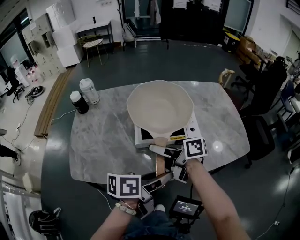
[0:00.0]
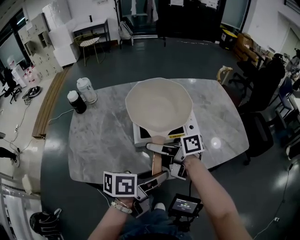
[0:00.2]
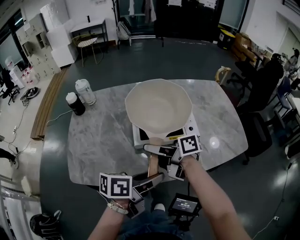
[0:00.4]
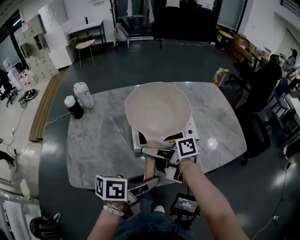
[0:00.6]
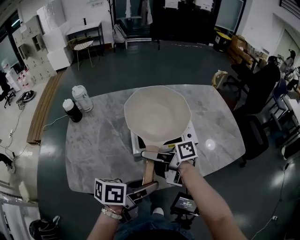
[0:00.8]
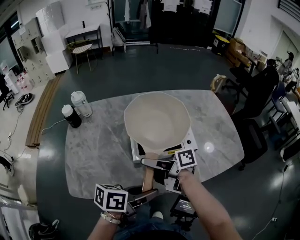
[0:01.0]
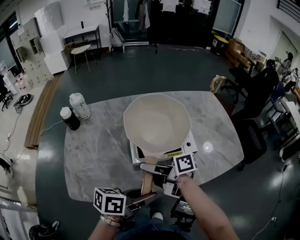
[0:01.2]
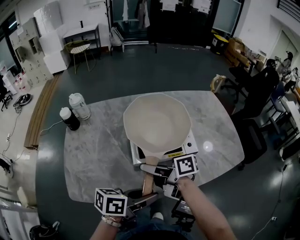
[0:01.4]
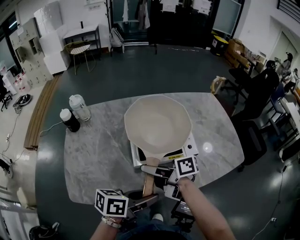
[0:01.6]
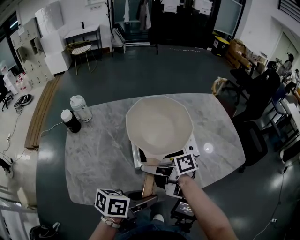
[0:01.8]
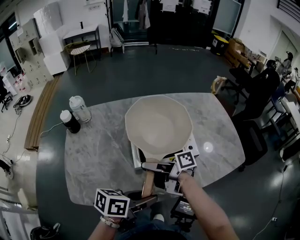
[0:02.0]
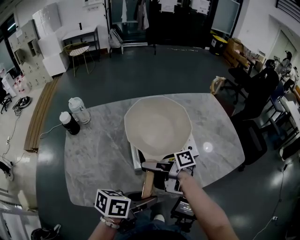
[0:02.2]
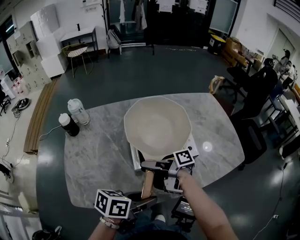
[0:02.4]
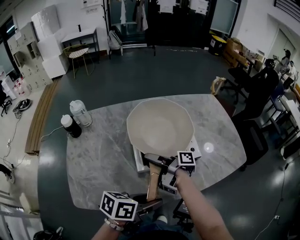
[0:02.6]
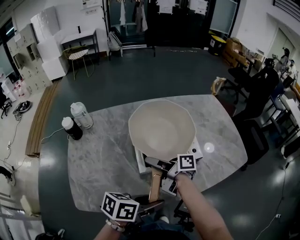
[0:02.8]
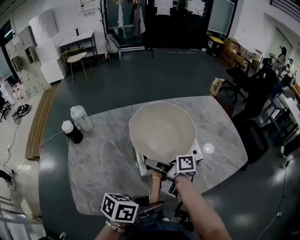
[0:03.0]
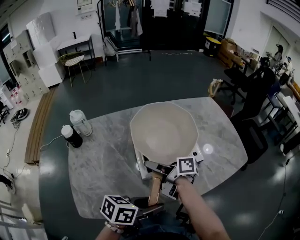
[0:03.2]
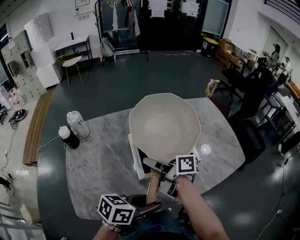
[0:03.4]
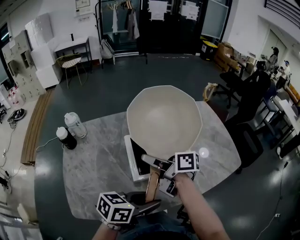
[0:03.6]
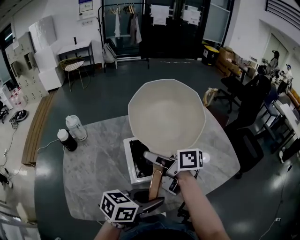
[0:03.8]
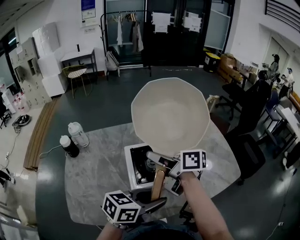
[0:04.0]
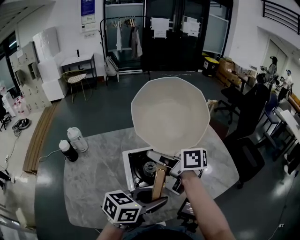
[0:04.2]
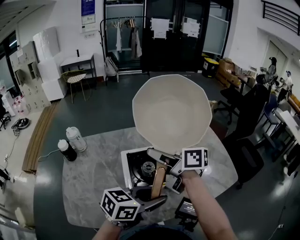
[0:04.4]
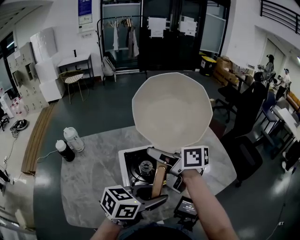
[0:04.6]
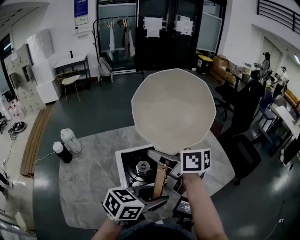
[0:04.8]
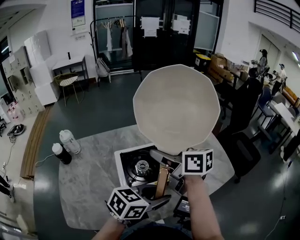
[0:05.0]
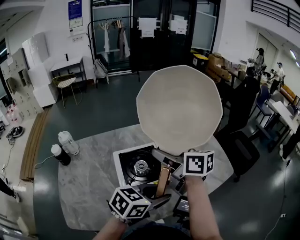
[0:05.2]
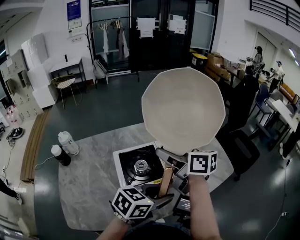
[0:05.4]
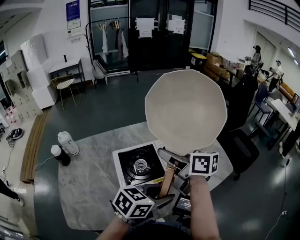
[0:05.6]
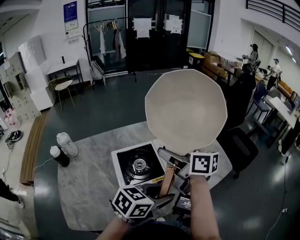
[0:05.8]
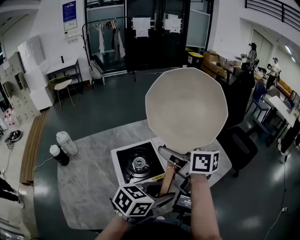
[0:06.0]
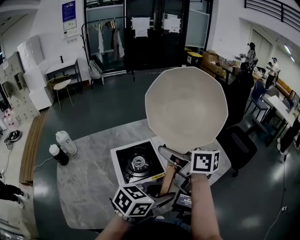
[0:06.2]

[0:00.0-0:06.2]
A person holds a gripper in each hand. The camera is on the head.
0:00.0 to 0:01.6: The left gripper ends up roughly 5 cm from where it was.
0:01.6 to 0:03.2: The right gripper shifts by roughly 5 cm.
0:03.2 to 0:04.6: The left gripper ends up about 15 cm from where it was, and swivels roughly 20 degrees; the right gripper heads upward, covering some 15 cm, and turns by roughly 30 degrees.
0:04.6 to 0:06.2: The right gripper is displaced to the right by some 10 cm, while the left gripper moves to the right, approximately 5 cm.

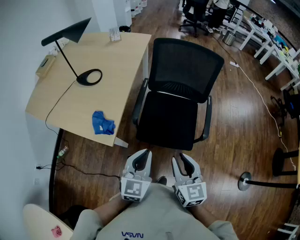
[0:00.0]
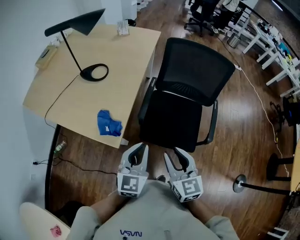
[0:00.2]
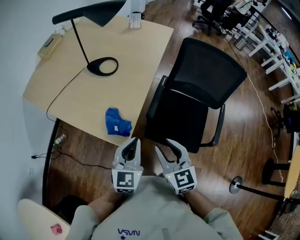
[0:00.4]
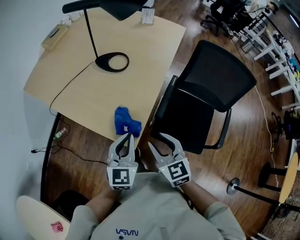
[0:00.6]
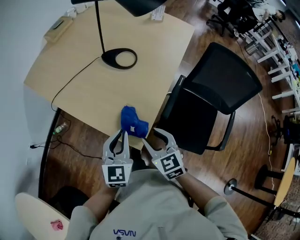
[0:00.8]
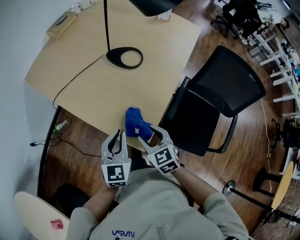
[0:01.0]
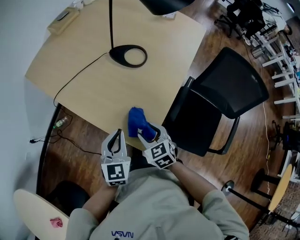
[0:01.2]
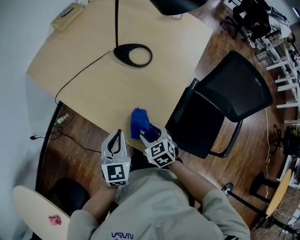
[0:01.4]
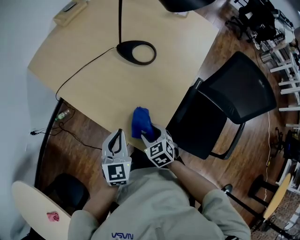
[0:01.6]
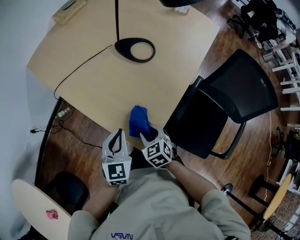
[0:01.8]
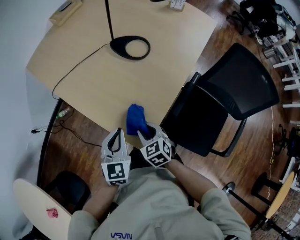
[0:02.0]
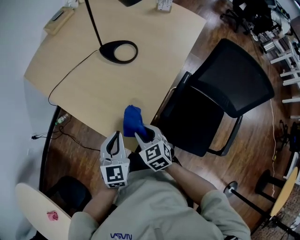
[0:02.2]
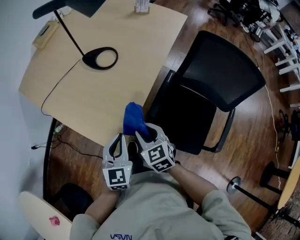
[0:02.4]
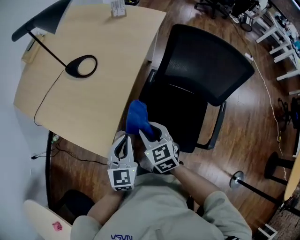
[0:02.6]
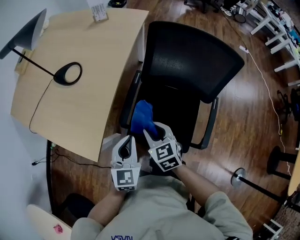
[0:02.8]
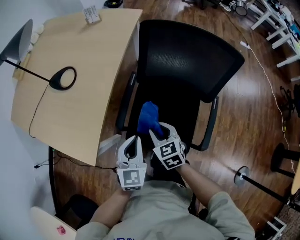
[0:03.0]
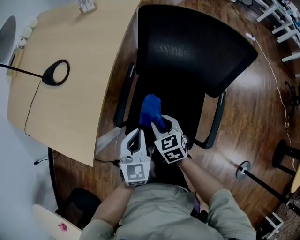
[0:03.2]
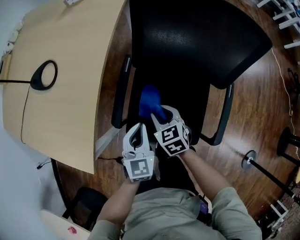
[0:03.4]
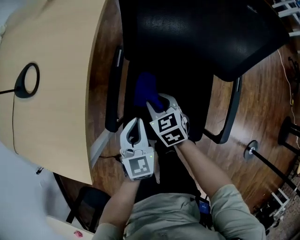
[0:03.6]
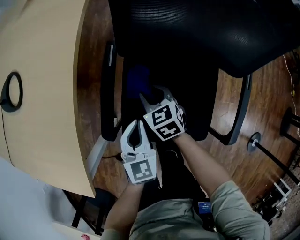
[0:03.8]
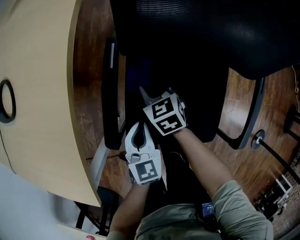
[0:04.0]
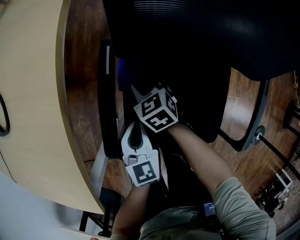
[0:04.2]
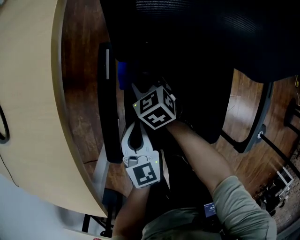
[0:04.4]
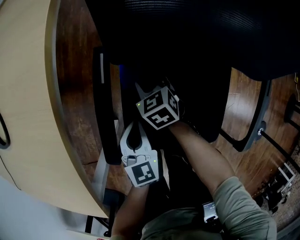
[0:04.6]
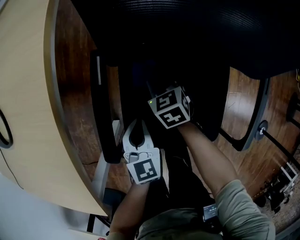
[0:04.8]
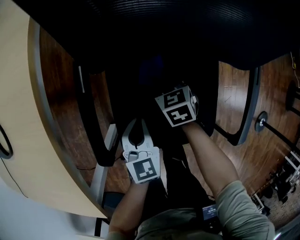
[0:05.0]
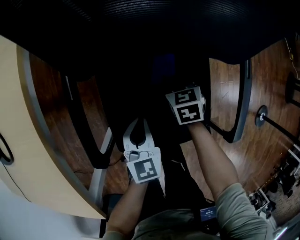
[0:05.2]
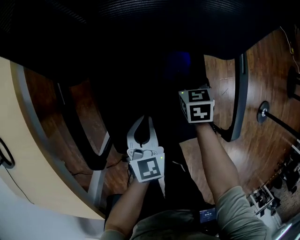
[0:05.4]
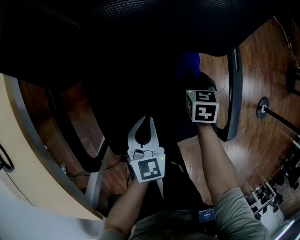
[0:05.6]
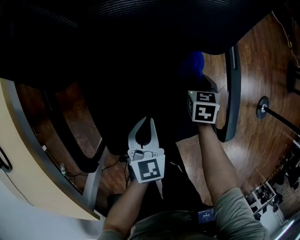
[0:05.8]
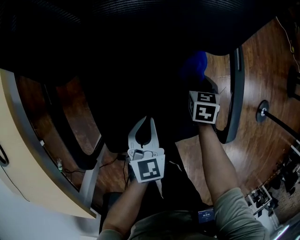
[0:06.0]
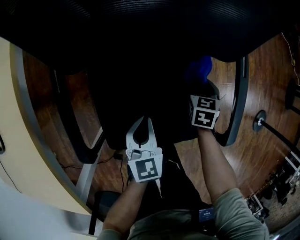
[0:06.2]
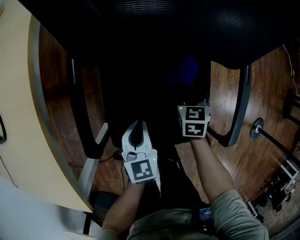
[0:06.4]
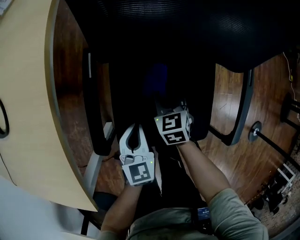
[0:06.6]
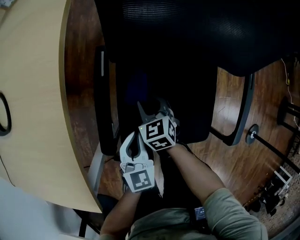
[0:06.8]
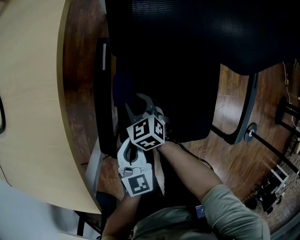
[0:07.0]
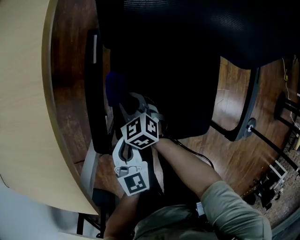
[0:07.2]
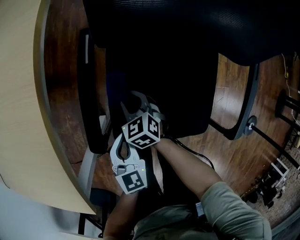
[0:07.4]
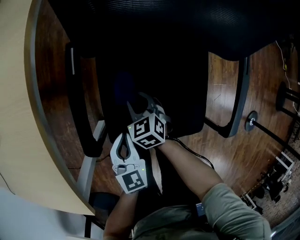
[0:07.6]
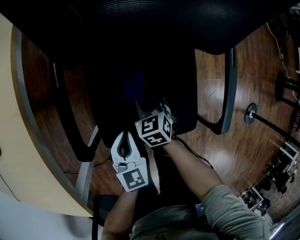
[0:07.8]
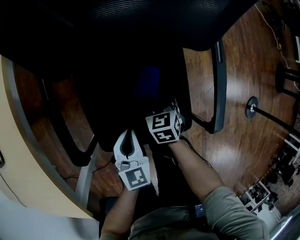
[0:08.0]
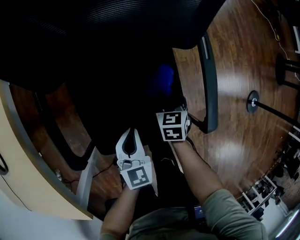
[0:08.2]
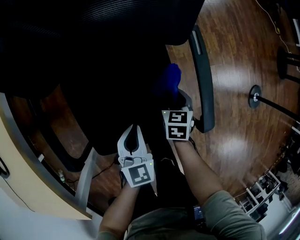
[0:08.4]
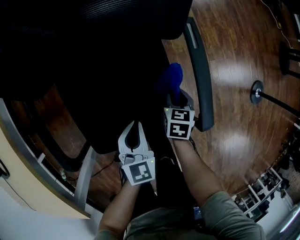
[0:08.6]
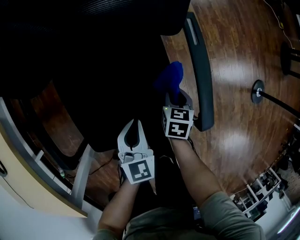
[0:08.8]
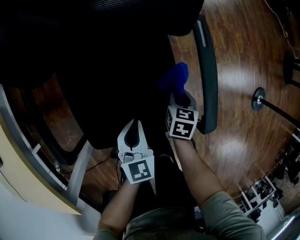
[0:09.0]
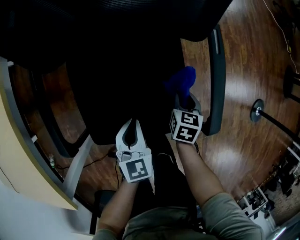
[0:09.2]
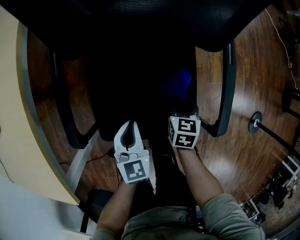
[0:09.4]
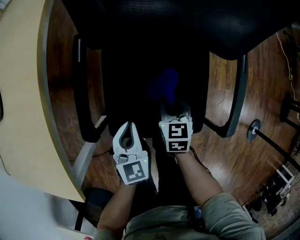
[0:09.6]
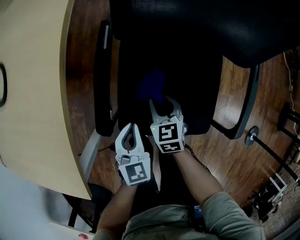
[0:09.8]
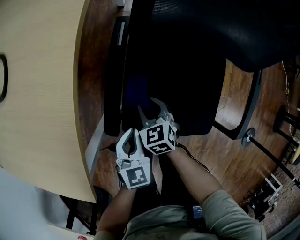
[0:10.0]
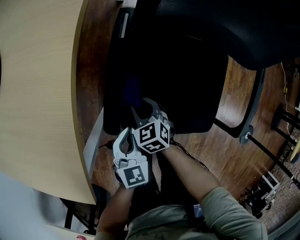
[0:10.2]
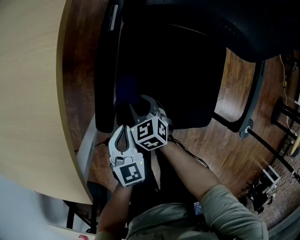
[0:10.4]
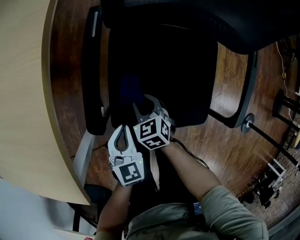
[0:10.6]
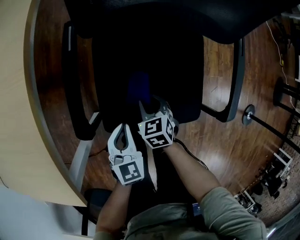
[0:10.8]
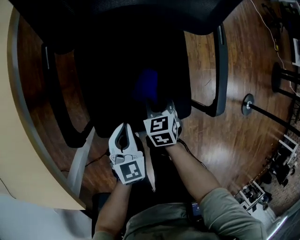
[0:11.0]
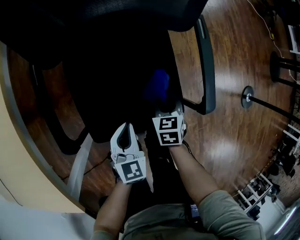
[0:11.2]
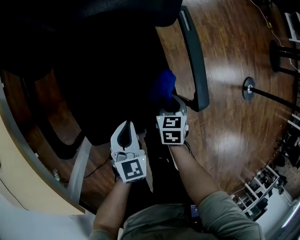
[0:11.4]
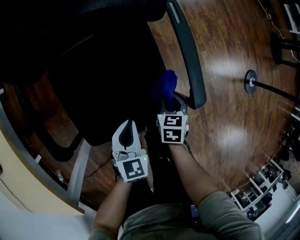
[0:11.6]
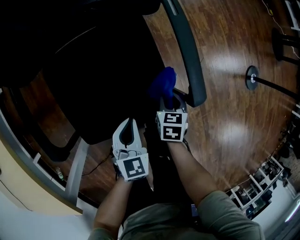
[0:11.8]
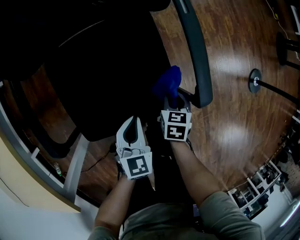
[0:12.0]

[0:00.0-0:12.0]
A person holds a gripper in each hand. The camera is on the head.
0:00.0 to 0:01.6: Both grippers are carried roughly 40 cm. The left gripper swivels some 30 degrees, while the right gripper tips its fingers downward by some 30 degrees, and opens.
0:01.6 to 0:03.0: Both grippers move to the right, roughly 40 cm. The right gripper rotates some 30 degrees, and closes.
0:03.0 to 0:04.4: The right gripper shifts about 40 cm downward and forward; the left gripper travels downward by some 30 cm.
0:04.4 to 0:06.0: The right gripper changes place by approximately 40 cm, and swivels about 50 degrees. The left gripper moves approximately 20 cm, and turns by some 20 degrees.
0:06.0 to 0:07.6: The left gripper moves approximately 15 cm; the right gripper changes place by roughly 35 cm, and turns by some 40 degrees.
0:07.6 to 0:09.0: The right gripper ends up about 35 cm from where it was, and rotates around the line of its fingers by some 40 degrees, clockwise from behind, while the left gripper changes place by roughly 20 cm.
0:09.0 to 0:10.4: The right gripper moves roughly 10 cm upward and comes back, and rotates around the line of its fingers by roughly 50 degrees, counterclockwise from behind. The left gripper ends up about 25 cm from where it was, and swivels roughly 20 degrees.
0:10.4 to 0:12.0: The right gripper ends up approximately 40 cm from where it was, and twists roughly 50 degrees clockwise, seen from behind, while the left gripper shifts by approximately 30 cm, and swivels approximately 30 degrees.

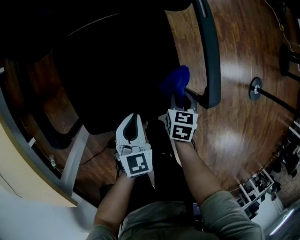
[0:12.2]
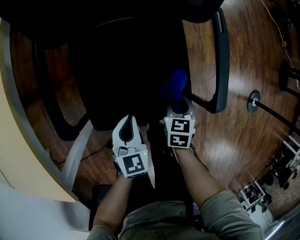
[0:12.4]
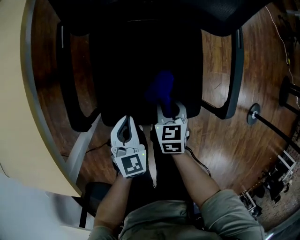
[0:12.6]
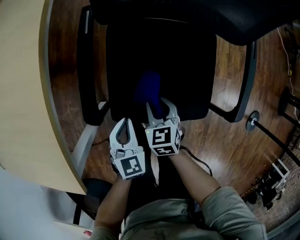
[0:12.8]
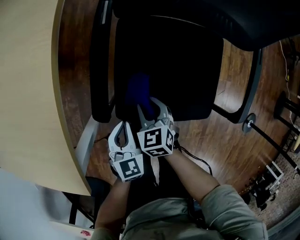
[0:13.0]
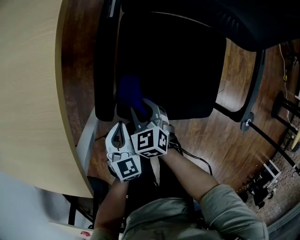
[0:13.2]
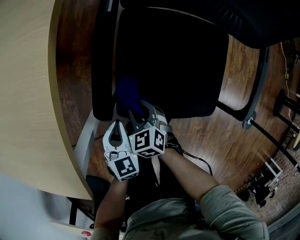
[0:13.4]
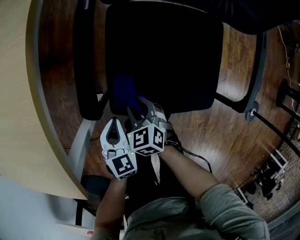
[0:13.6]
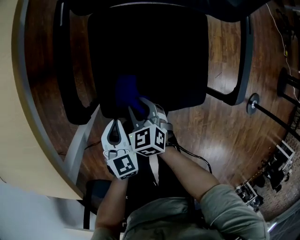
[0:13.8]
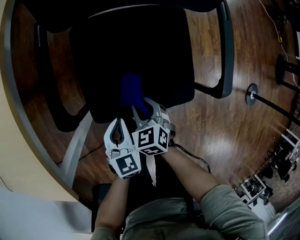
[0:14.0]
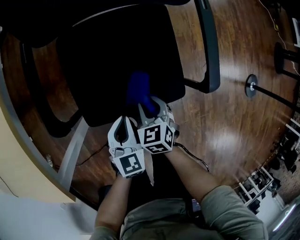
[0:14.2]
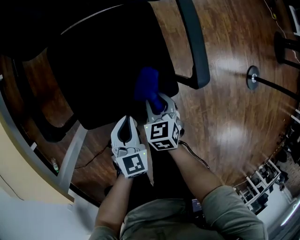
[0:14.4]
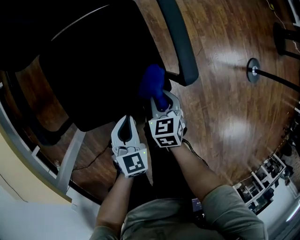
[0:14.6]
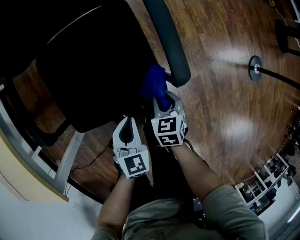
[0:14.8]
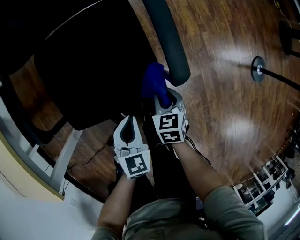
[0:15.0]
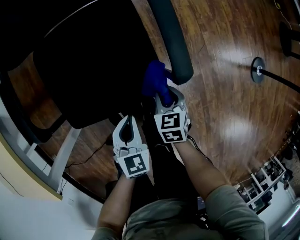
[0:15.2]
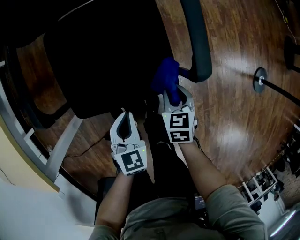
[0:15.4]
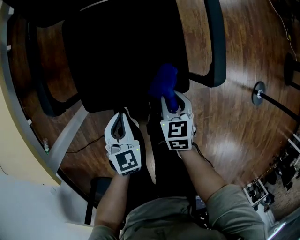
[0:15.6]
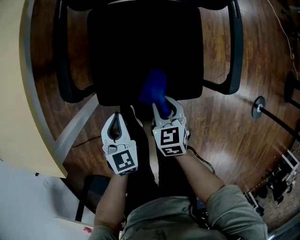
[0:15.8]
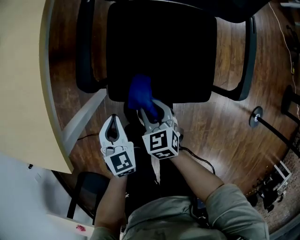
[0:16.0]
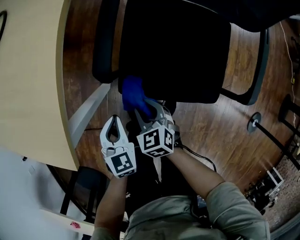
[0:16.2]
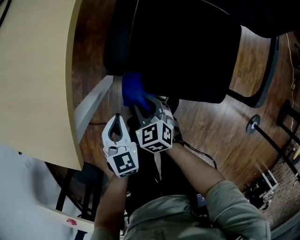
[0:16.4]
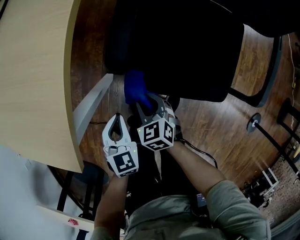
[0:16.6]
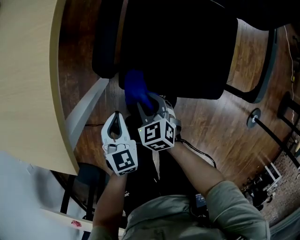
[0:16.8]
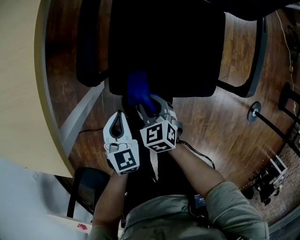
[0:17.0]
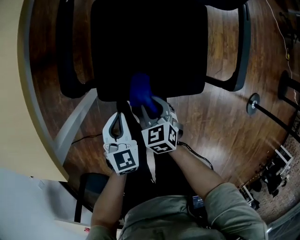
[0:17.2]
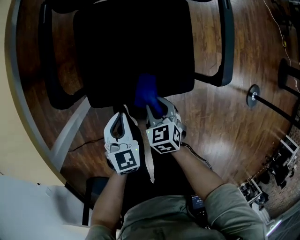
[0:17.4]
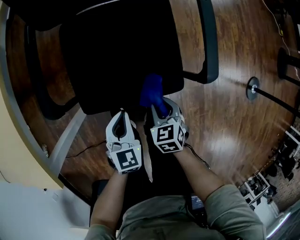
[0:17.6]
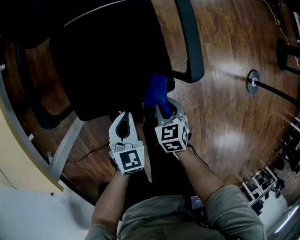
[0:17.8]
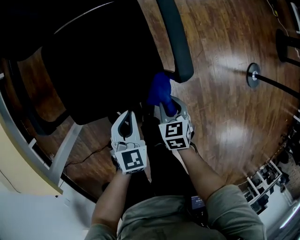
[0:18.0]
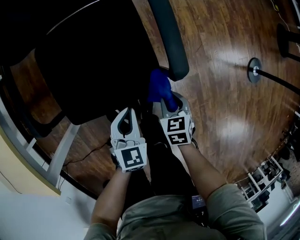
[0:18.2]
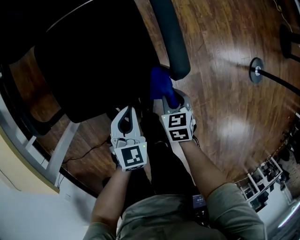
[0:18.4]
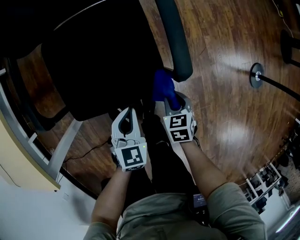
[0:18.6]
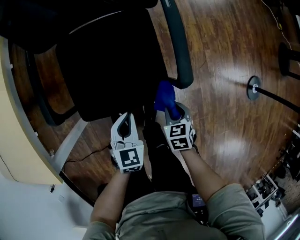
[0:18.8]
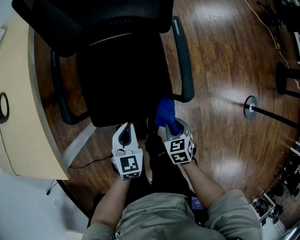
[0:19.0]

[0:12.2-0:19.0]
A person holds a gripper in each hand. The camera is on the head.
0:12.2 to 0:13.6: The left gripper shifts by approximately 25 cm, and turns by about 30 degrees; the right gripper moves roughly 35 cm, and twists approximately 40 degrees counterclockwise, seen from behind.
0:13.6 to 0:15.0: The right gripper shifts by roughly 40 cm, and rotates some 40 degrees; the left gripper changes place by approximately 30 cm, and changes its angle by roughly 30 degrees.
0:15.0 to 0:16.2: The left gripper moves roughly 35 cm, and swivels about 40 degrees. The right gripper moves about 40 cm, and turns by some 50 degrees.
0:16.2 to 0:17.6: The right gripper ends up roughly 25 cm from where it was, and swivels about 30 degrees. Meanwhile the left gripper shifts by some 20 cm, and swivels some 30 degrees.
0:17.6 to 0:19.0: The right gripper shifts some 10 cm to the right and upward. The left gripper heads upward, covering some 10 cm.
